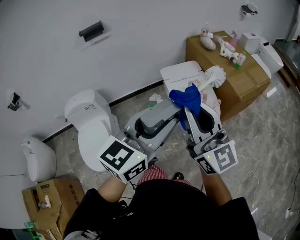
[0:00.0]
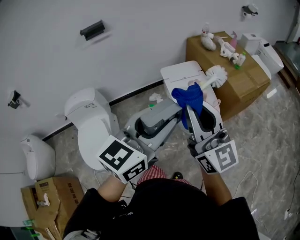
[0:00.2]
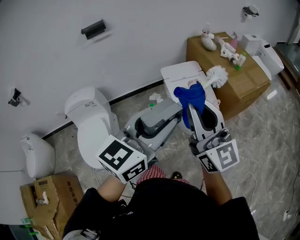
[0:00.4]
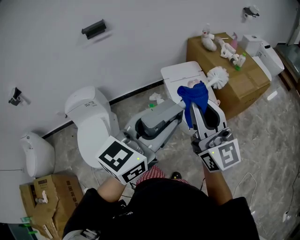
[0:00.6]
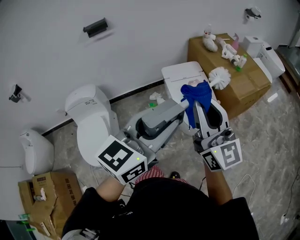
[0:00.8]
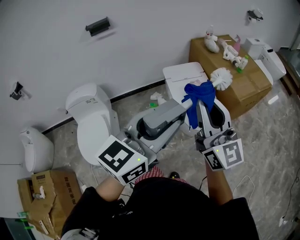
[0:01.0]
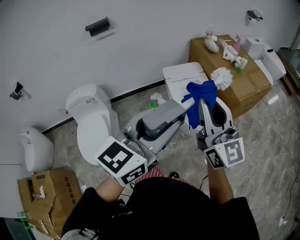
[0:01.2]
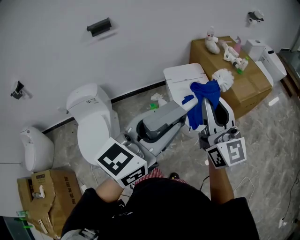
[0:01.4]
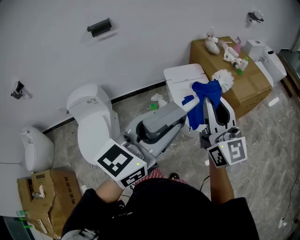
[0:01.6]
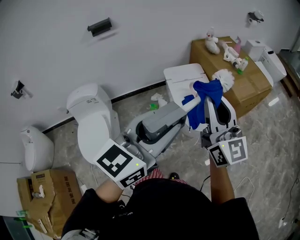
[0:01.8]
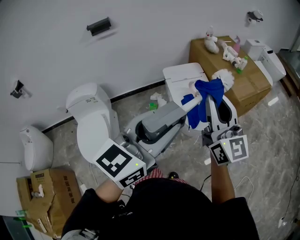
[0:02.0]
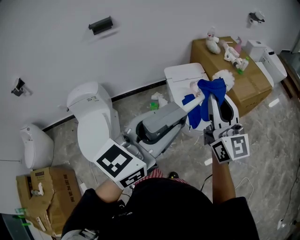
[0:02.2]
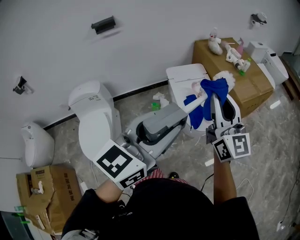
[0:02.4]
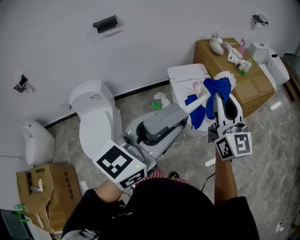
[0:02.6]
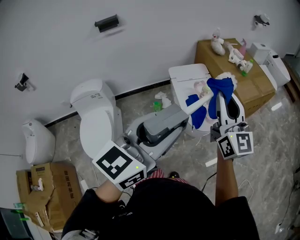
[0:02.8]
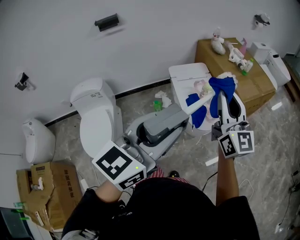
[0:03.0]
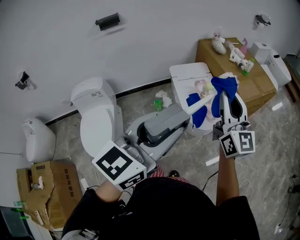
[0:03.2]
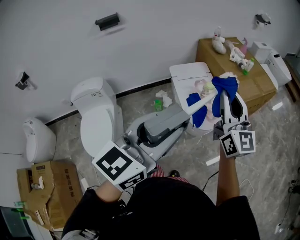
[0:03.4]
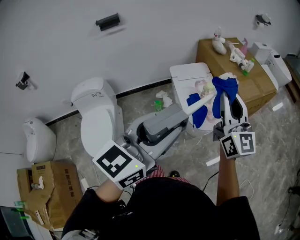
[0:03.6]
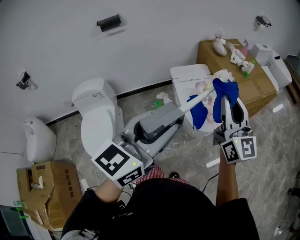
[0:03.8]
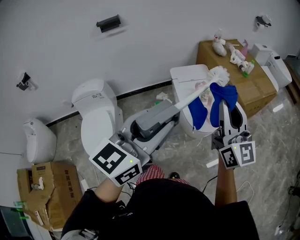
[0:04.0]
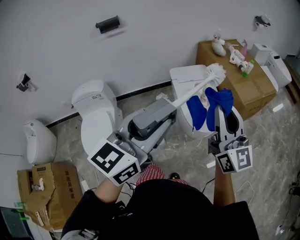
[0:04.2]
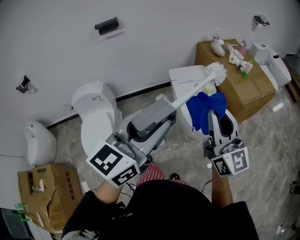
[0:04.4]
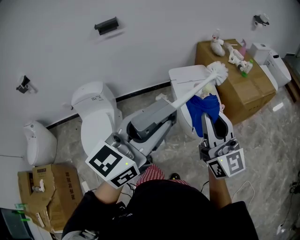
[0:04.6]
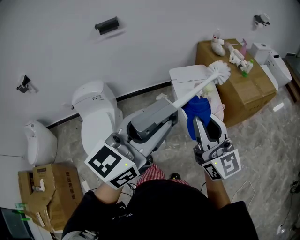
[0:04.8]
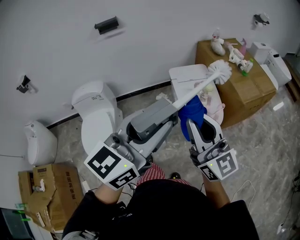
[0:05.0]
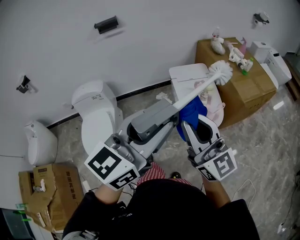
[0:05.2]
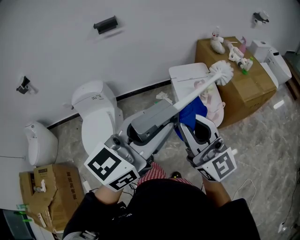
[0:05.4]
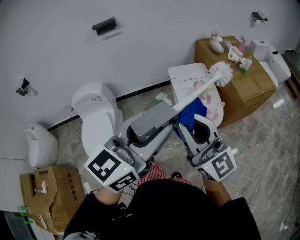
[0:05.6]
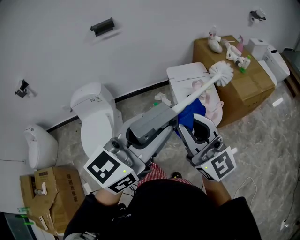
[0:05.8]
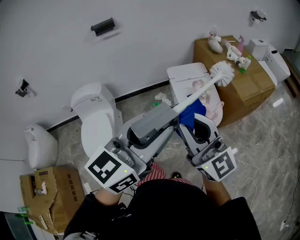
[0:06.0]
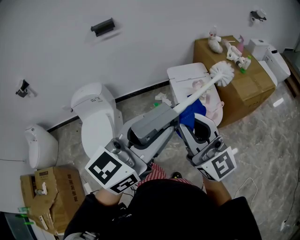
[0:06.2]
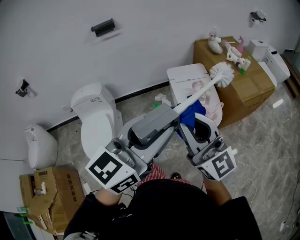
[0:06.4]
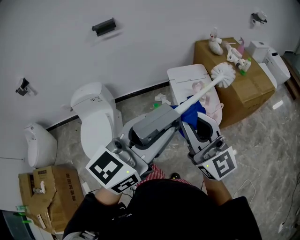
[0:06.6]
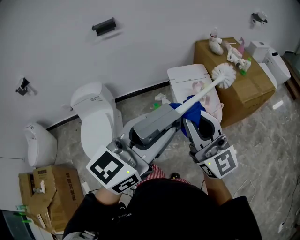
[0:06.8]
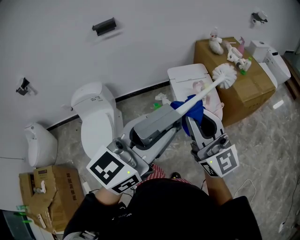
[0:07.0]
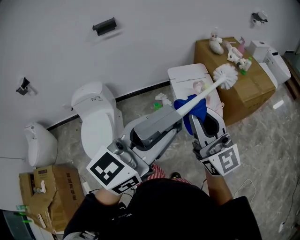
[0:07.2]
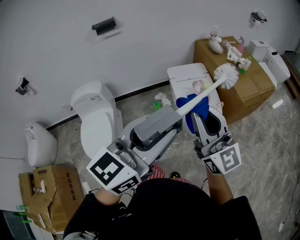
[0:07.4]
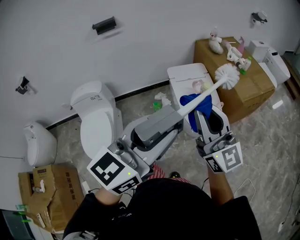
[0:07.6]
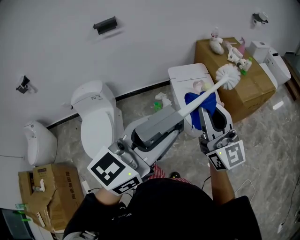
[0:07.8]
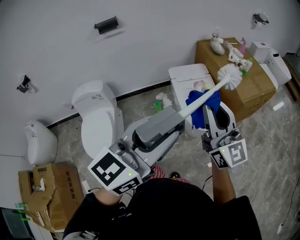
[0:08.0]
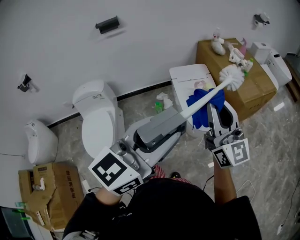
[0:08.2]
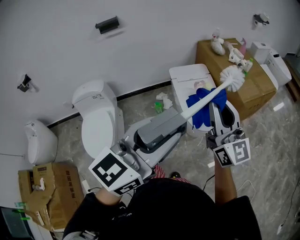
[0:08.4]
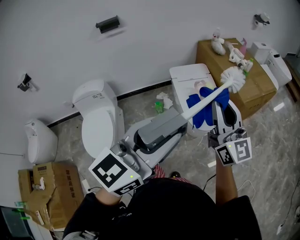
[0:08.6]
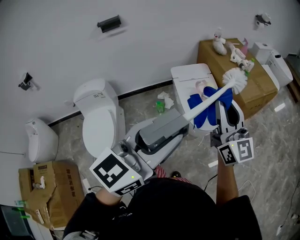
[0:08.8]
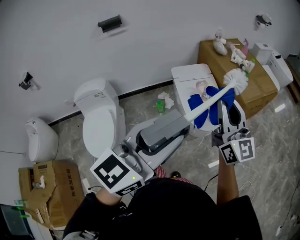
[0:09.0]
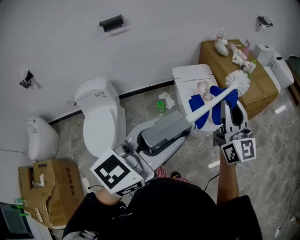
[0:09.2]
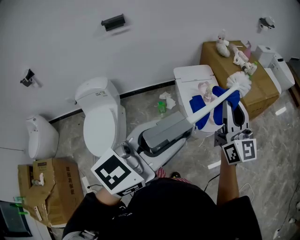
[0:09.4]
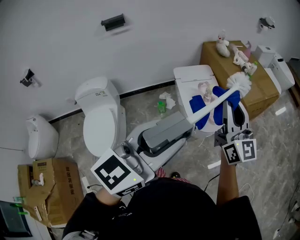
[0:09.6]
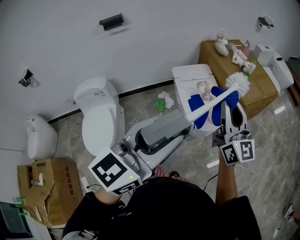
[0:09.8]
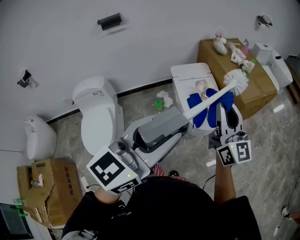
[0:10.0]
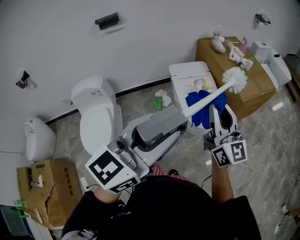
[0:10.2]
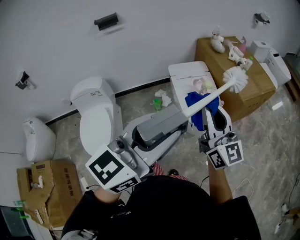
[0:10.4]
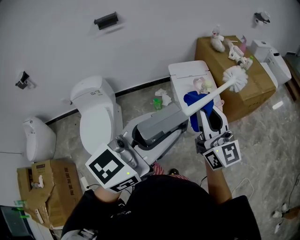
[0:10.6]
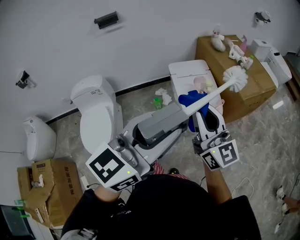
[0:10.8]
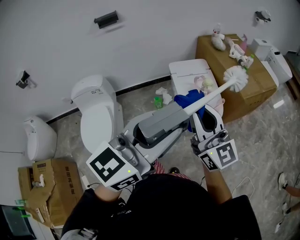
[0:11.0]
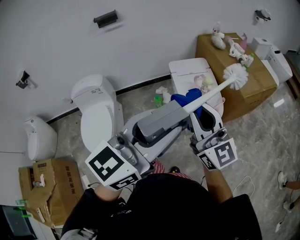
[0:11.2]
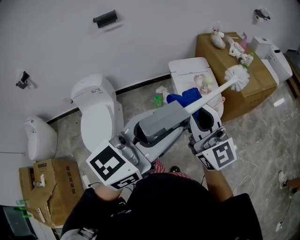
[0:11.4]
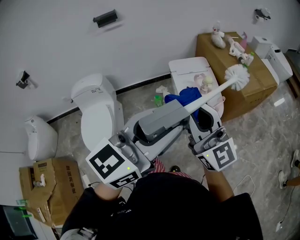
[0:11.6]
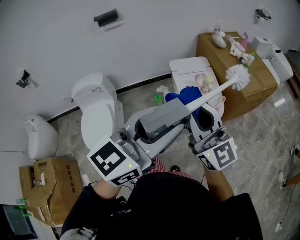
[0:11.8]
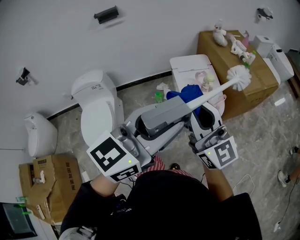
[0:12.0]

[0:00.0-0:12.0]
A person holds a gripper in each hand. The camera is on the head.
0:00.0 to 0:01.6: The left gripper moves roughly 5 cm; the right gripper is displaced to the right by approximately 5 cm.
0:01.6 to 0:03.0: The grippers make only small movements.
0:03.0 to 0:04.4: The right gripper travels backward by about 5 cm.
0:04.4 to 0:06.0: The right gripper is displaced to the left by about 10 cm.
0:06.0 to 0:07.6: The right gripper shifts by about 5 cm.
0:07.6 to 0:09.0: The right gripper heads to the right, covering approximately 5 cm.
0:09.0 to 0:10.4: The right gripper ends up roughly 5 cm from where it was.
0:10.4 to 0:12.0: The right gripper travels to the left by roughly 5 cm.

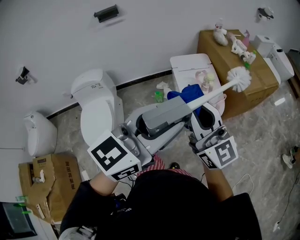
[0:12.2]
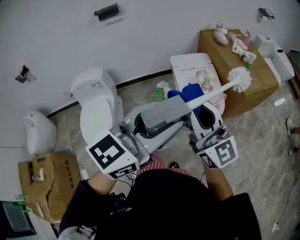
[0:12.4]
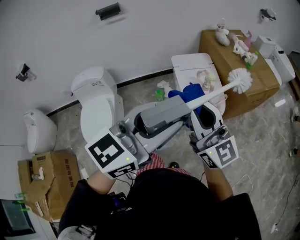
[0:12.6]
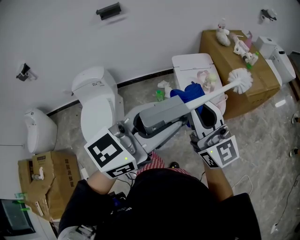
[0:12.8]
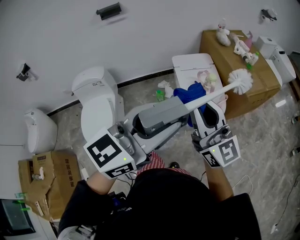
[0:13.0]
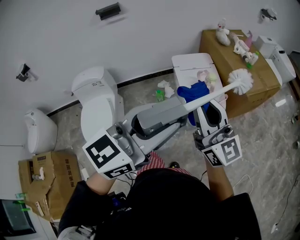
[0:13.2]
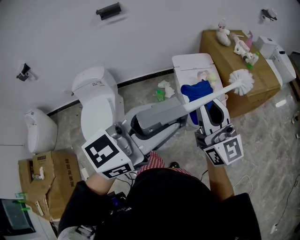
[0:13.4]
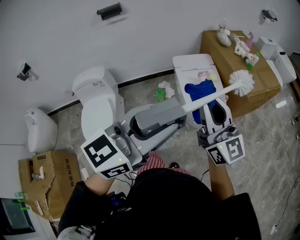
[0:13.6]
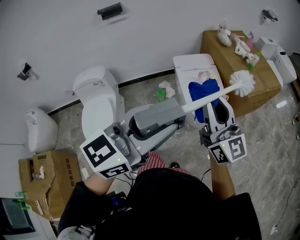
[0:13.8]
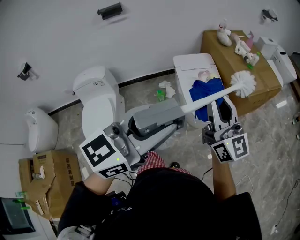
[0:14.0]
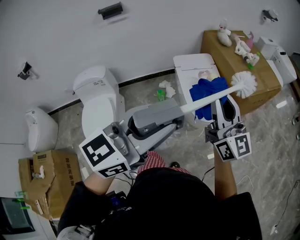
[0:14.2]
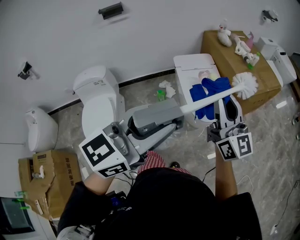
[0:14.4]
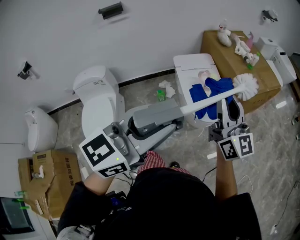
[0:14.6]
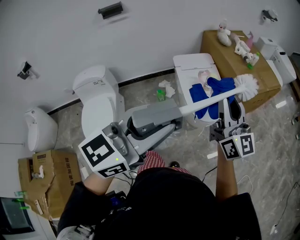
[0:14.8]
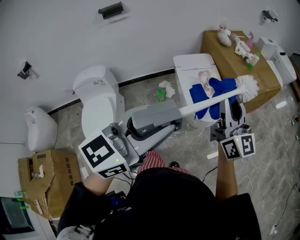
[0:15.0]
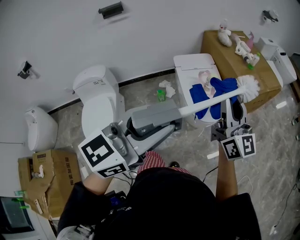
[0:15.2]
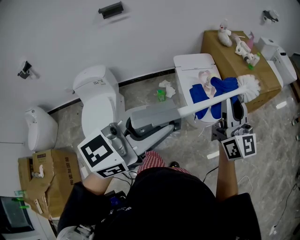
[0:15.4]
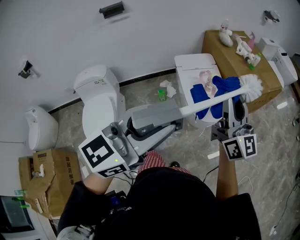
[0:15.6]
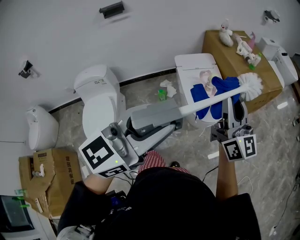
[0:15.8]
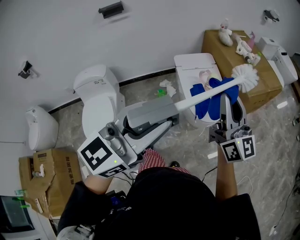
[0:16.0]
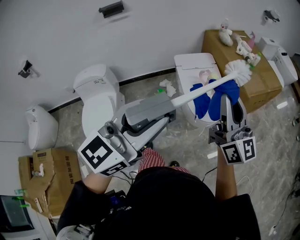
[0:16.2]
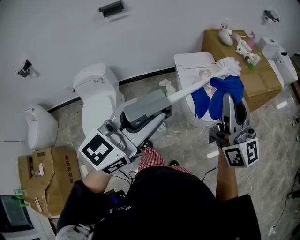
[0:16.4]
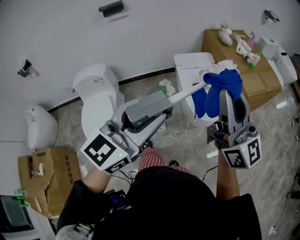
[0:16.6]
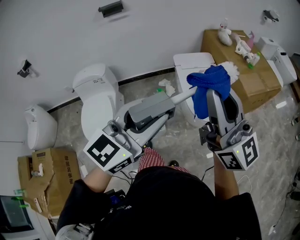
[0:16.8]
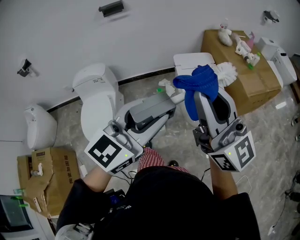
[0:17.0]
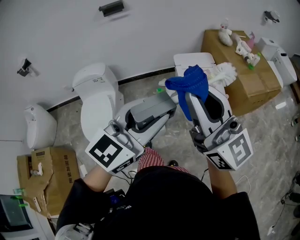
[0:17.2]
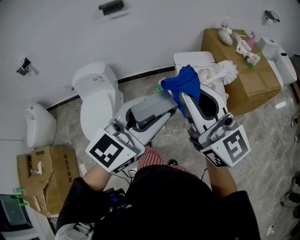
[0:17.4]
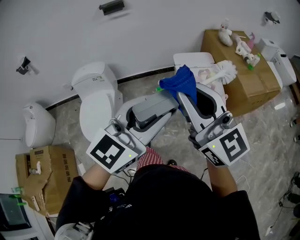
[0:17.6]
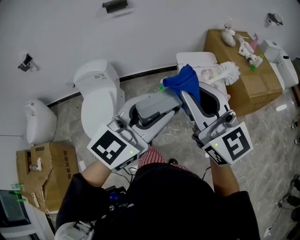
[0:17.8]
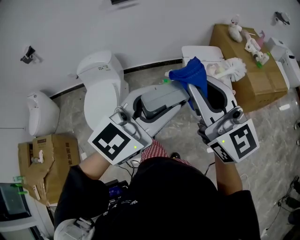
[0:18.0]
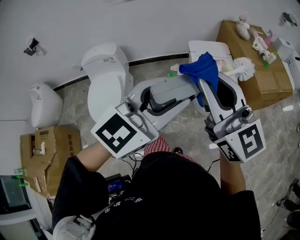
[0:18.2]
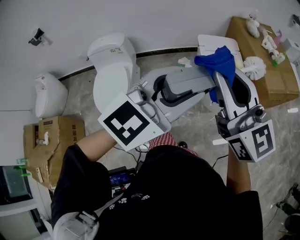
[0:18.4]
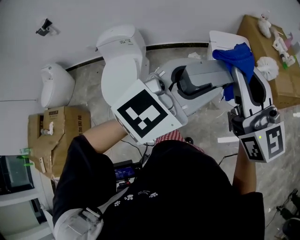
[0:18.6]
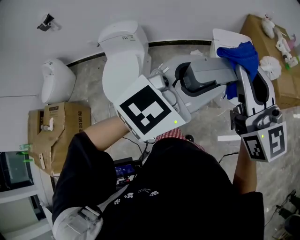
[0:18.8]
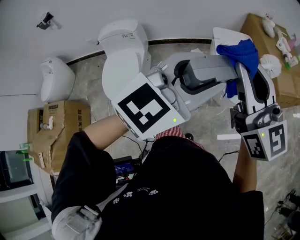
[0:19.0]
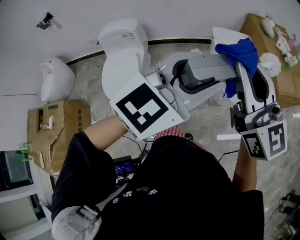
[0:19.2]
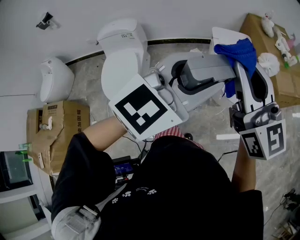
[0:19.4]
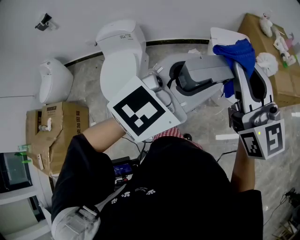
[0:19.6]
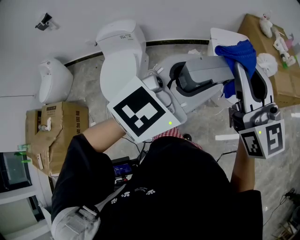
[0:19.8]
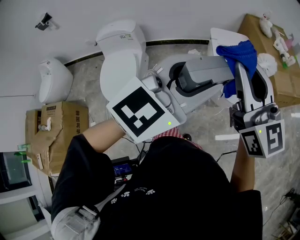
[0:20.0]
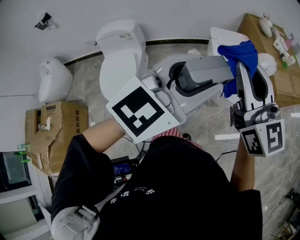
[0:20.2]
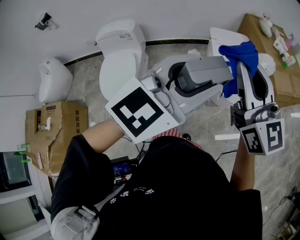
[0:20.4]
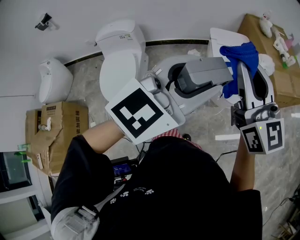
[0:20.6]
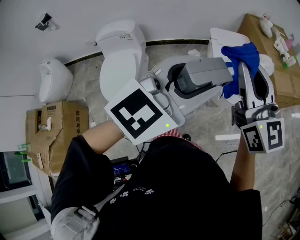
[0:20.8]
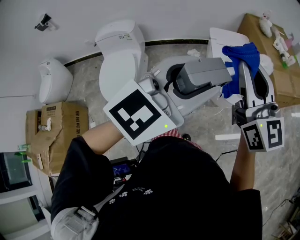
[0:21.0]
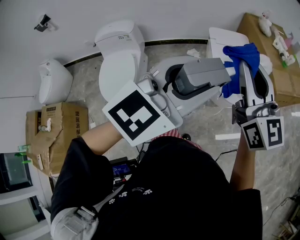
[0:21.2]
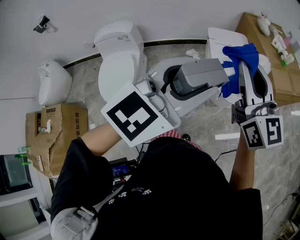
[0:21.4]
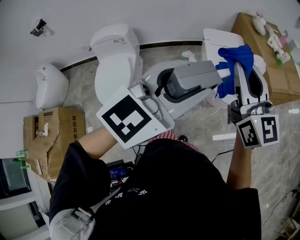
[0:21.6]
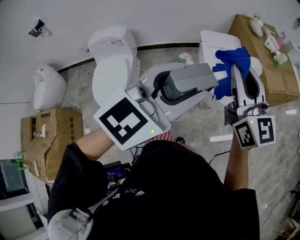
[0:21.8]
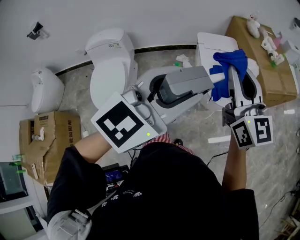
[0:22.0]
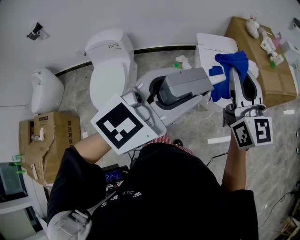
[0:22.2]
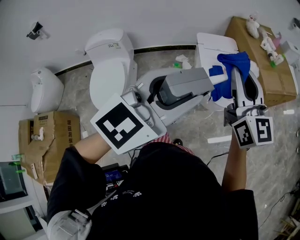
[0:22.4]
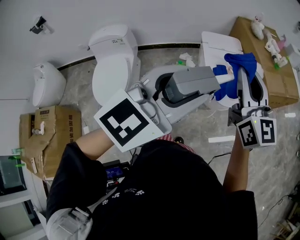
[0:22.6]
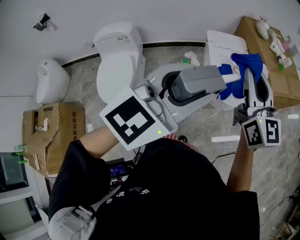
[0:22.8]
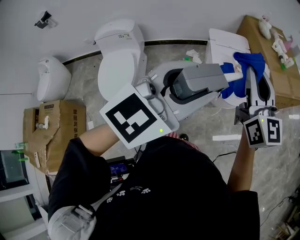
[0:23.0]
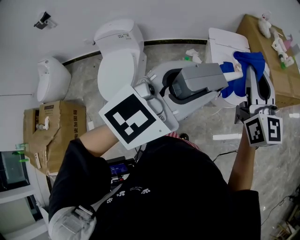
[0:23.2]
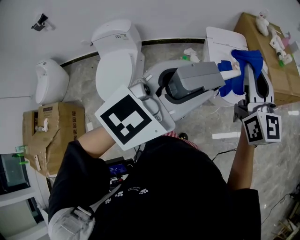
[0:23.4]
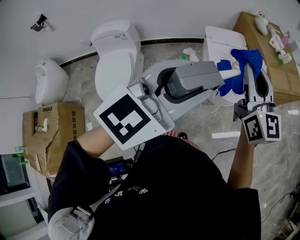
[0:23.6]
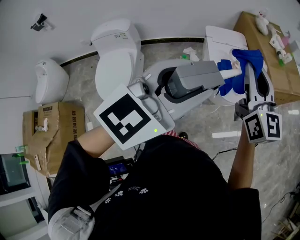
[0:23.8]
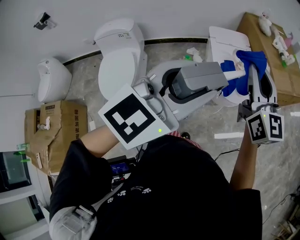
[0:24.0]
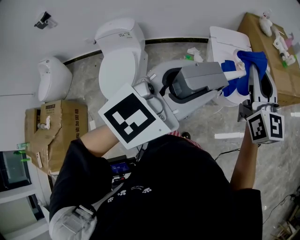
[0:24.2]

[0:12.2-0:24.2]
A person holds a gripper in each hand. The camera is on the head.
0:12.2 to 0:13.8: The right gripper moves some 5 cm.
0:13.8 to 0:15.2: The right gripper travels to the right by roughly 5 cm.
0:15.2 to 0:16.6: The right gripper heads upward, covering roughly 5 cm.
0:16.6 to 0:18.2: The right gripper moves to the left, roughly 10 cm, and swivels about 20 degrees.
0:18.2 to 0:19.8: The two grippers keep their place.
0:19.8 to 0:21.2: There are only small adjustments of the grippers.
0:21.2 to 0:22.6: The grippers make only small movements.
0:22.6 to 0:24.2: The grippers make only small movements.
